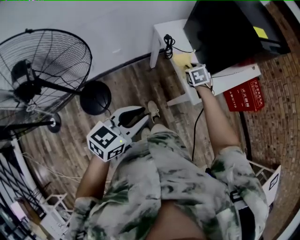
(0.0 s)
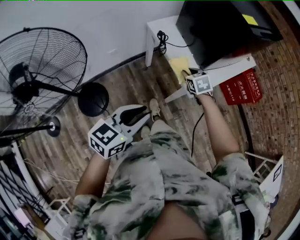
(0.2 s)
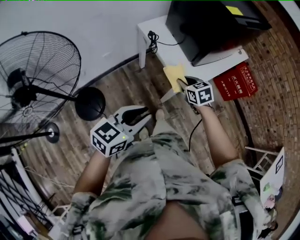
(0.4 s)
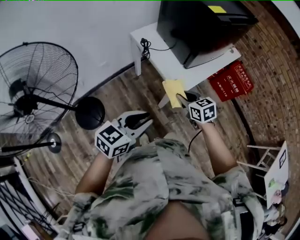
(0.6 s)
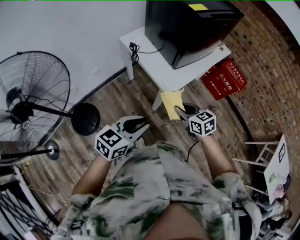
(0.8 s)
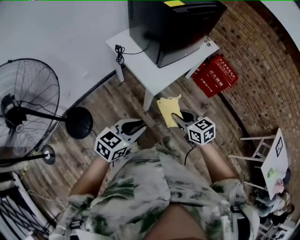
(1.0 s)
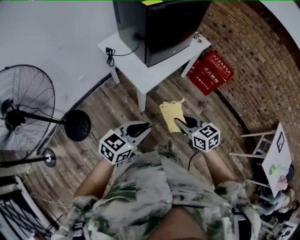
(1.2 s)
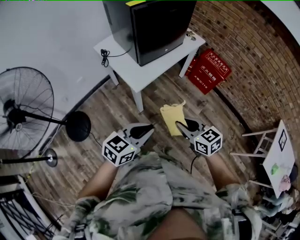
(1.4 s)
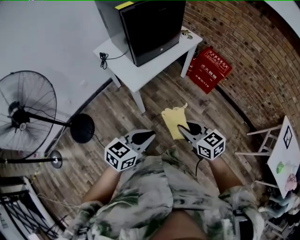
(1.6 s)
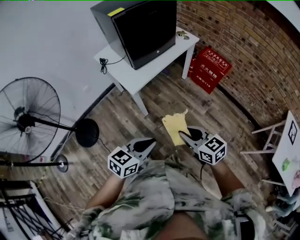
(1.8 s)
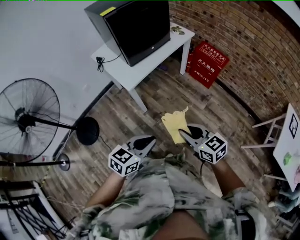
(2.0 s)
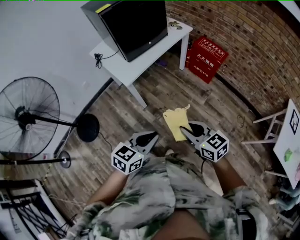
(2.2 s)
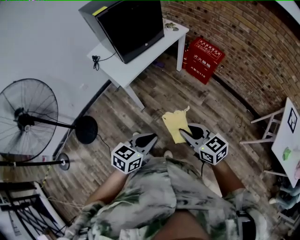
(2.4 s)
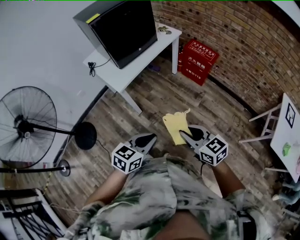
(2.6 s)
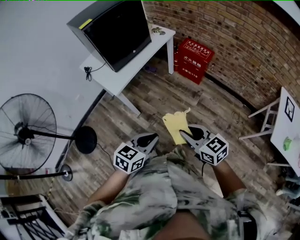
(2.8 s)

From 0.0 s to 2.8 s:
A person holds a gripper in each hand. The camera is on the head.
From 0.0 s to 1.4 s: The left gripper goes approximately 35 cm to the right, and turns by roughly 20 degrees. The right gripper is displaced backward and to the right by approximately 50 cm, and swivels some 40 degrees.
From 1.4 s to 2.8 s: The grippers both shift to the right and backward by roughly 20 cm.

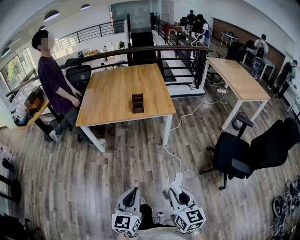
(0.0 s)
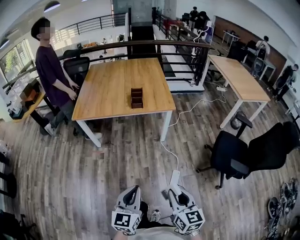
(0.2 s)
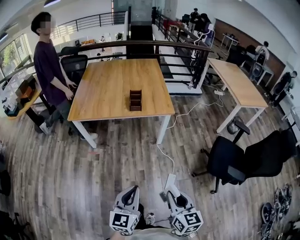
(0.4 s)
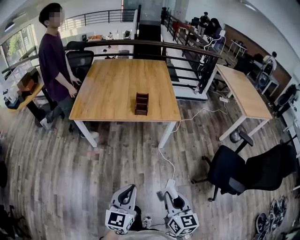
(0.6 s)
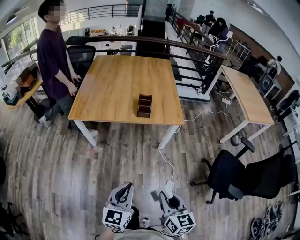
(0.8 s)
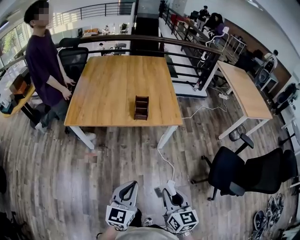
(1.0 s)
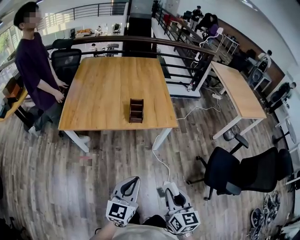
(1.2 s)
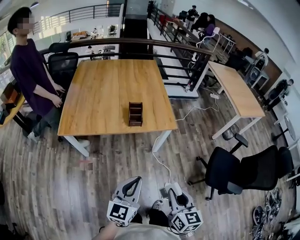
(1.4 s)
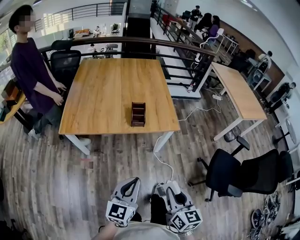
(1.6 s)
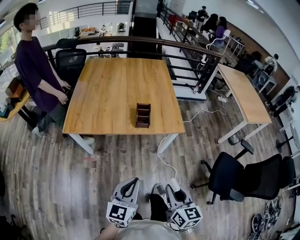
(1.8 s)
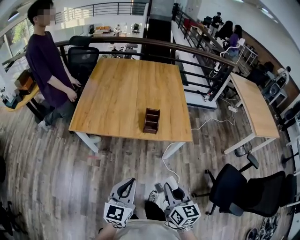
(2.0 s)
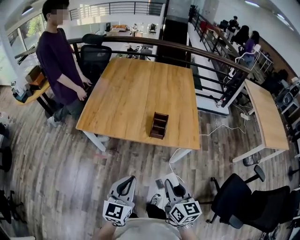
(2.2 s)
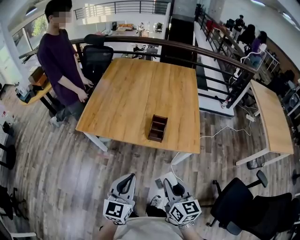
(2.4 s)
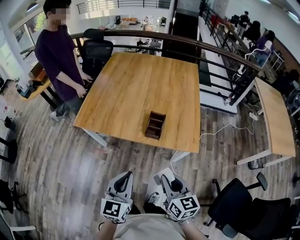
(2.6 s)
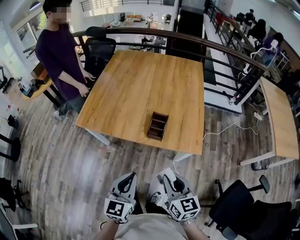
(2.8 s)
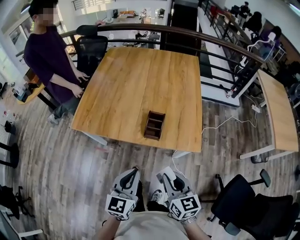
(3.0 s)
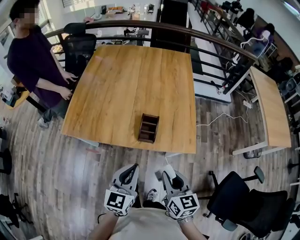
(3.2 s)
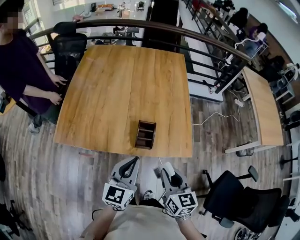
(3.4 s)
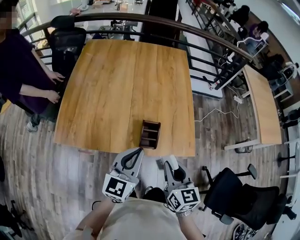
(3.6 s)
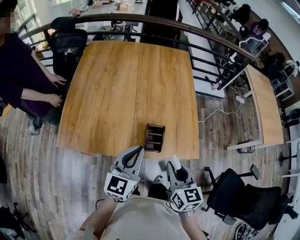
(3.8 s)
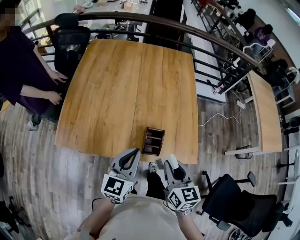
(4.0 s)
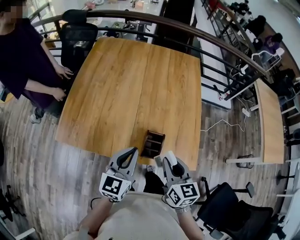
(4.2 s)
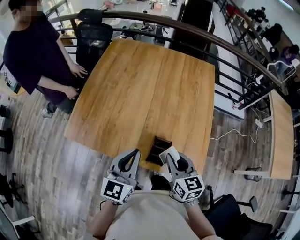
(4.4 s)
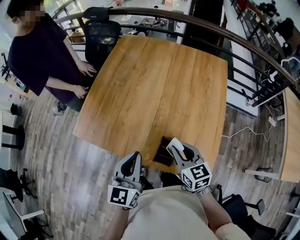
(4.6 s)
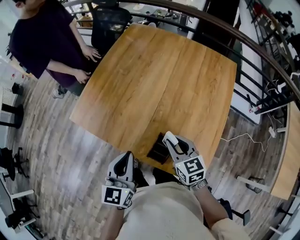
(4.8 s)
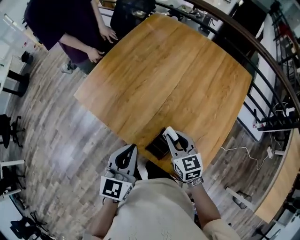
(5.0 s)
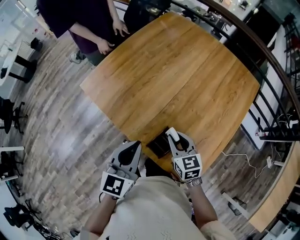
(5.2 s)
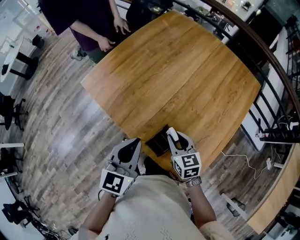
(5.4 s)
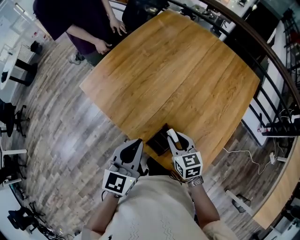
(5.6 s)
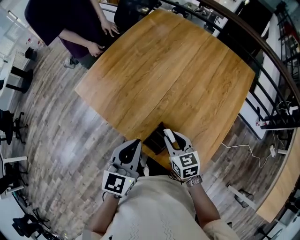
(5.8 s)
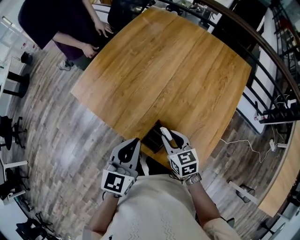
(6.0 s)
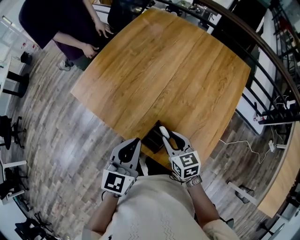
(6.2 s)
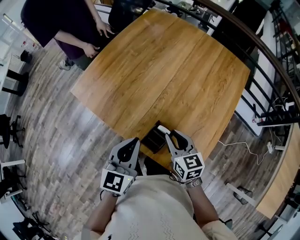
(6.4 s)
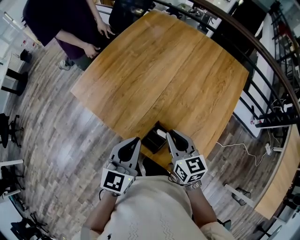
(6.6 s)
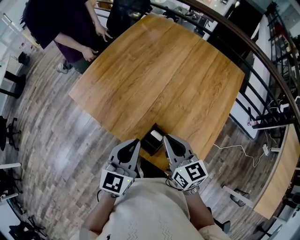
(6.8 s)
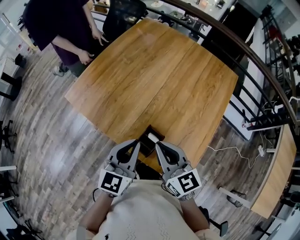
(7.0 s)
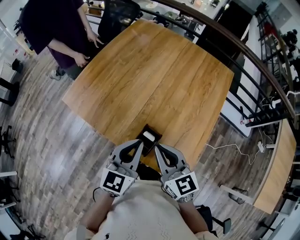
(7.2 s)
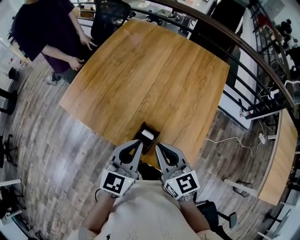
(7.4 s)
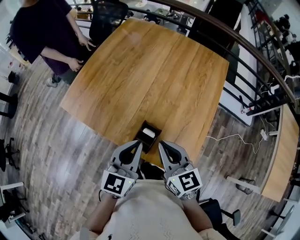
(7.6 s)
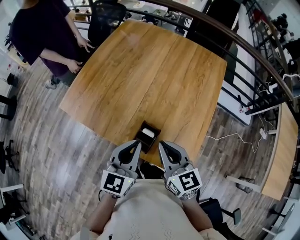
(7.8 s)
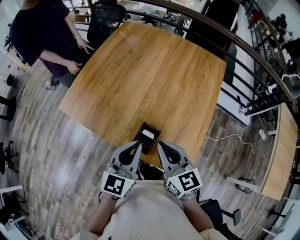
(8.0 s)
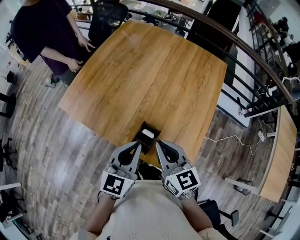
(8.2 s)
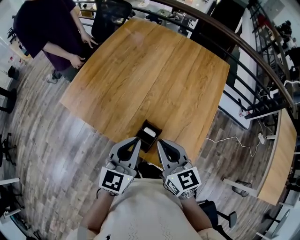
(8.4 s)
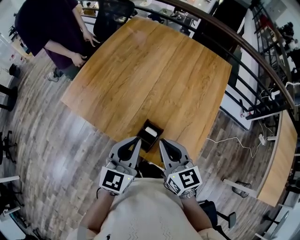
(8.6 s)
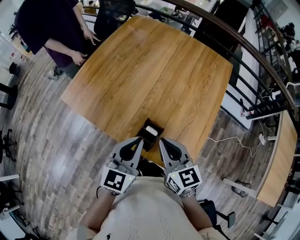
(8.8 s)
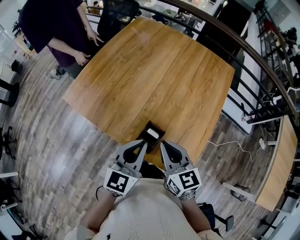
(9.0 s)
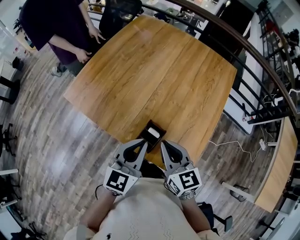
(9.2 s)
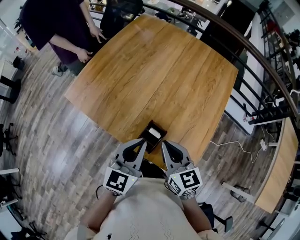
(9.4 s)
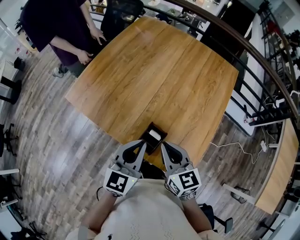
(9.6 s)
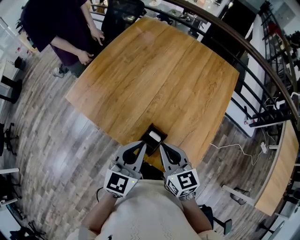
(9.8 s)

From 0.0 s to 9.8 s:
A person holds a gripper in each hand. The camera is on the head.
From 0.0 s to 1.4 s: The grippers both shift forward by approximately 35 cm.
From 1.4 s to 2.8 s: The left gripper ends up approximately 20 cm from where it was, and turns by about 30 degrees. Meanwhile the right gripper shifts by some 30 cm, and rotates some 30 degrees.
From 2.8 s to 4.2 s: Both grippers move forward, about 35 cm.
From 4.2 s to 5.6 s: The left gripper swivels about 30 degrees. Meanwhile the right gripper heads downward, covering approximately 10 cm, and turns by approximately 50 degrees.
From 5.6 s to 7.0 s: The right gripper heads upward, covering approximately 15 cm, rotates some 20 degrees, and closes up.
From 7.0 s to 9.8 s: There are only small adjustments of the grippers.

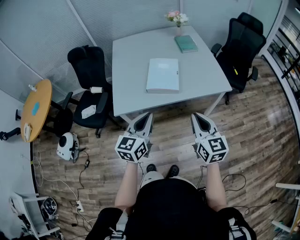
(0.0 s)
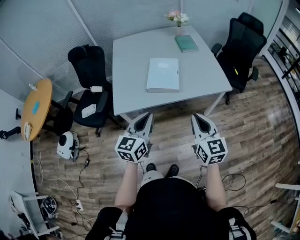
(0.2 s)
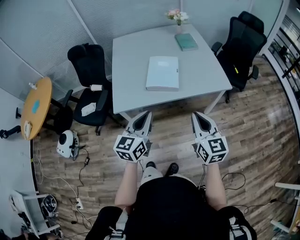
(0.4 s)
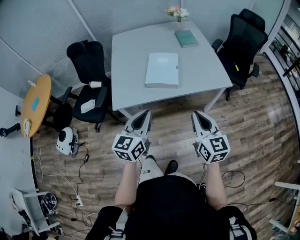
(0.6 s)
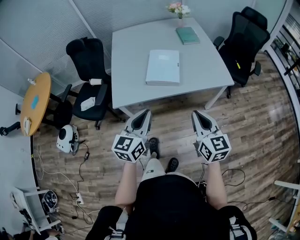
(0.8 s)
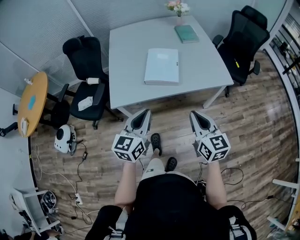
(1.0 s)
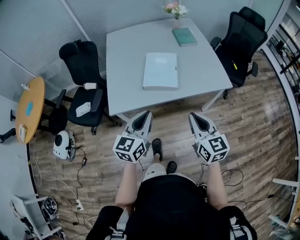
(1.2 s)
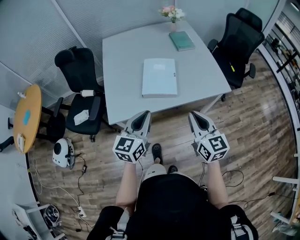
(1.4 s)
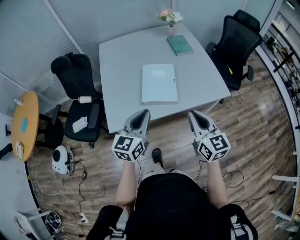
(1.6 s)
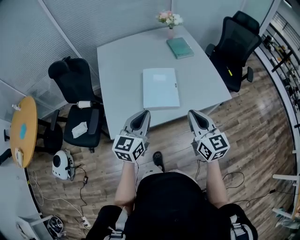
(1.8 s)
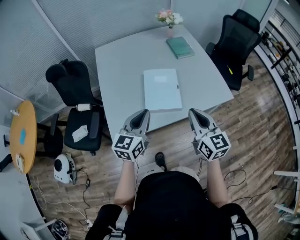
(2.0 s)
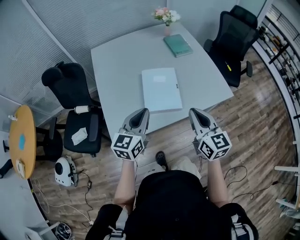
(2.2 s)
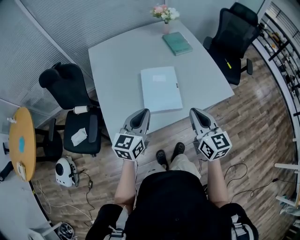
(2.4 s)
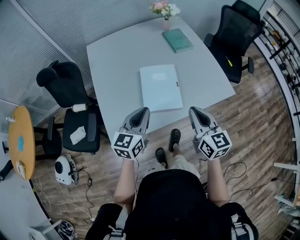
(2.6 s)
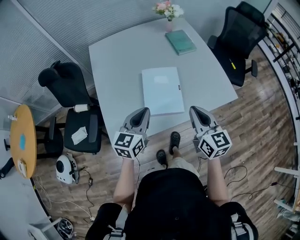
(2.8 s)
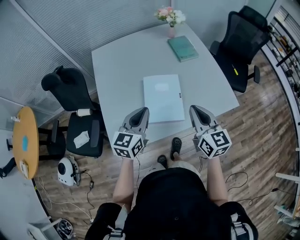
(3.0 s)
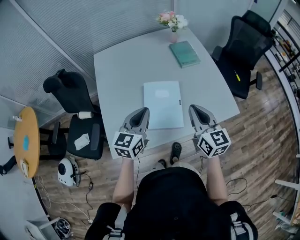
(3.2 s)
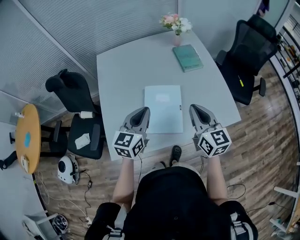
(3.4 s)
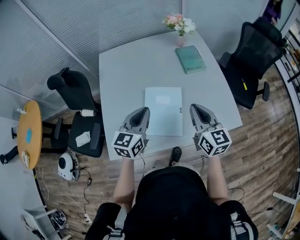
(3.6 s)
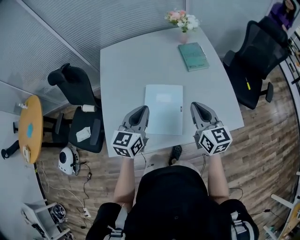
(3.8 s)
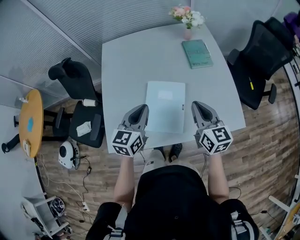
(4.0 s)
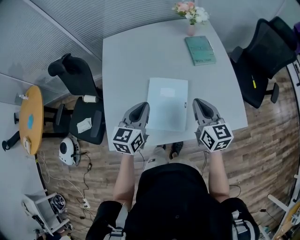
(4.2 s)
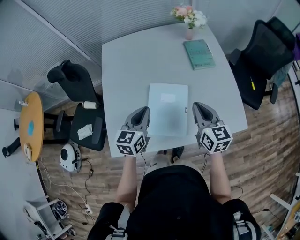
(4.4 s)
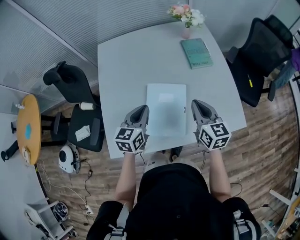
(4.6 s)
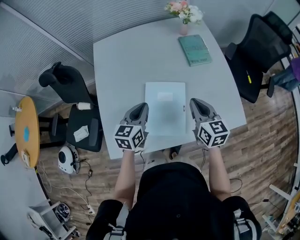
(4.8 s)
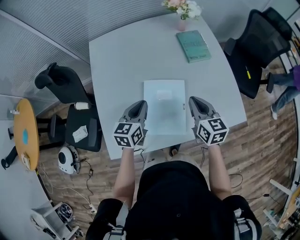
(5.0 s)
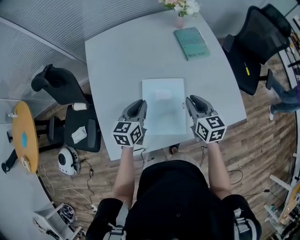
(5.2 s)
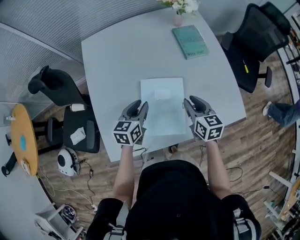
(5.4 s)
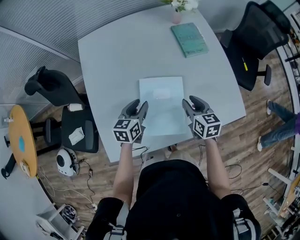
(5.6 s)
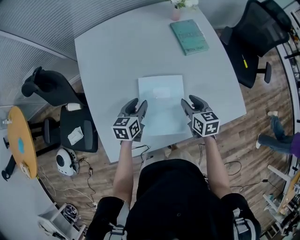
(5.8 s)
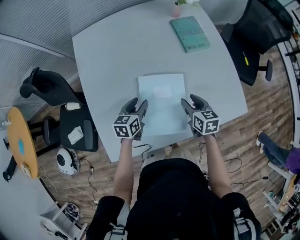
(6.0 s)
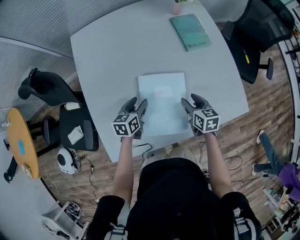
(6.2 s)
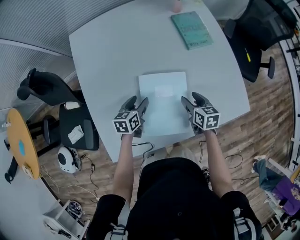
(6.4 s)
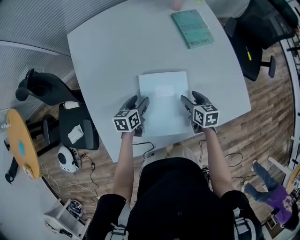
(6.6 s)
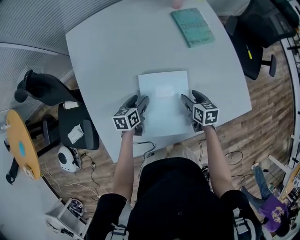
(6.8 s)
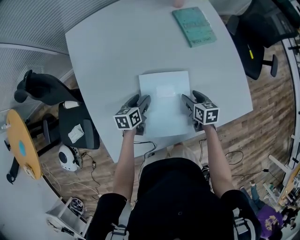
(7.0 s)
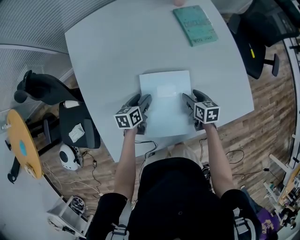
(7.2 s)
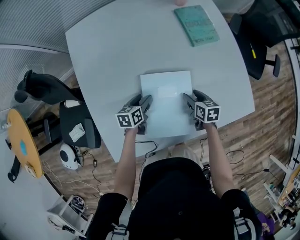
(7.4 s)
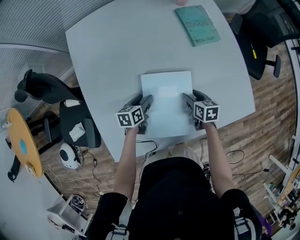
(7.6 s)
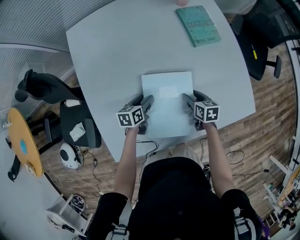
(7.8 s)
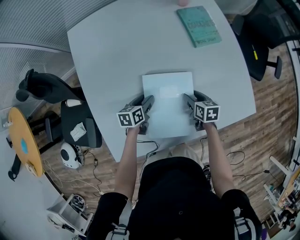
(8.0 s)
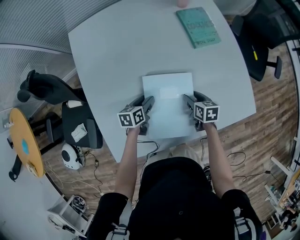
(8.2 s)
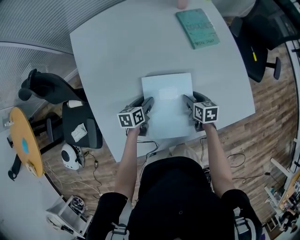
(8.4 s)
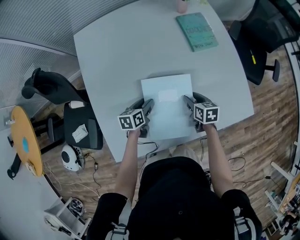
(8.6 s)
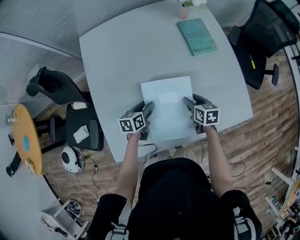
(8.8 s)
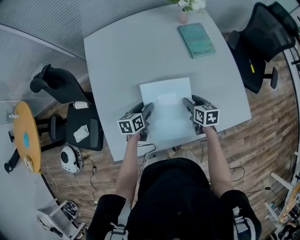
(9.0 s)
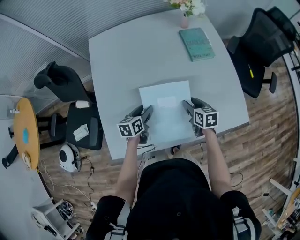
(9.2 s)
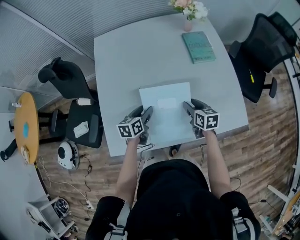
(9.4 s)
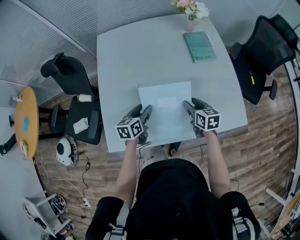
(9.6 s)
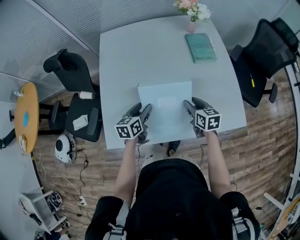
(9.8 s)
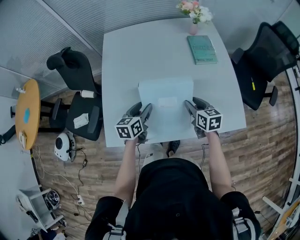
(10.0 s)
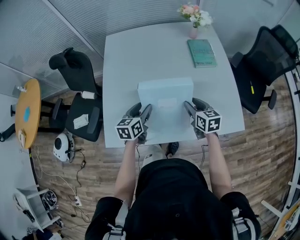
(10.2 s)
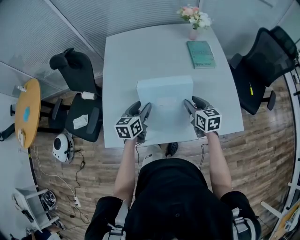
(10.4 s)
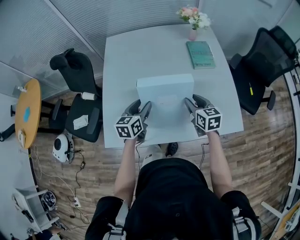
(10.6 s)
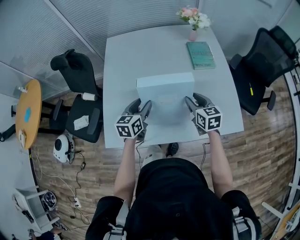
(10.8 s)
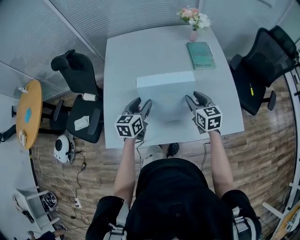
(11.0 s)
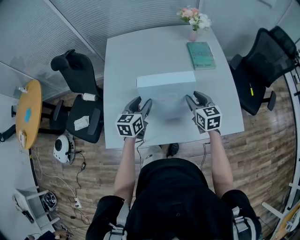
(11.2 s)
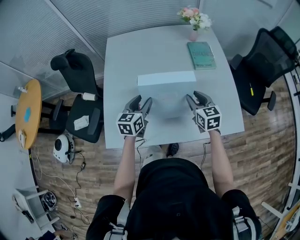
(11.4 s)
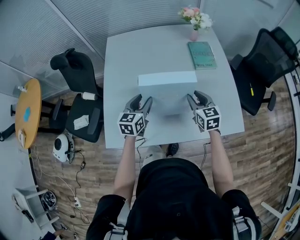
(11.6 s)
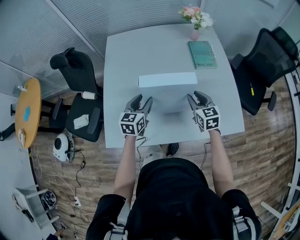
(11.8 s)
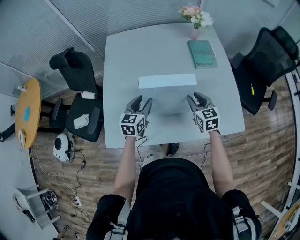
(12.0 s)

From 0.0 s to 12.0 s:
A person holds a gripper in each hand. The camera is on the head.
From 0.0 s to 1.6 s: Both grippers move forward, approximately 15 cm.
From 1.6 s to 3.0 s: The grippers both shift forward by roughly 20 cm.
From 3.0 s to 4.4 s: Both grippers move forward, approximately 15 cm.
From 4.4 s to 6.0 s: Both grippers travel together downward and forward, some 20 cm. The left gripper swivels approximately 20 degrees, and opens up. Meanwhile the right gripper turns by about 30 degrees, and opens up.
From 6.0 s to 7.6 s: The grippers both shift downward by about 10 cm.
From 7.6 s to 9.0 s: The left gripper heads upward and backward, covering some 10 cm. Meanwhile the right gripper moves upward, about 10 cm.
From 9.0 s to 10.4 s: Both grippers move upward and backward, some 15 cm. The left gripper swivels some 20 degrees. The right gripper swivels approximately 20 degrees.
From 10.4 s to 12.0 s: There are only small adjustments of the grippers.
